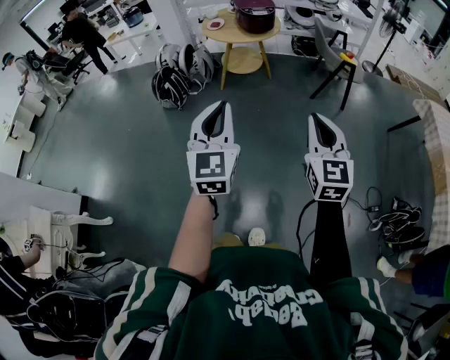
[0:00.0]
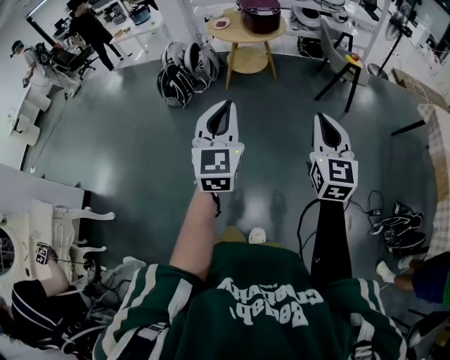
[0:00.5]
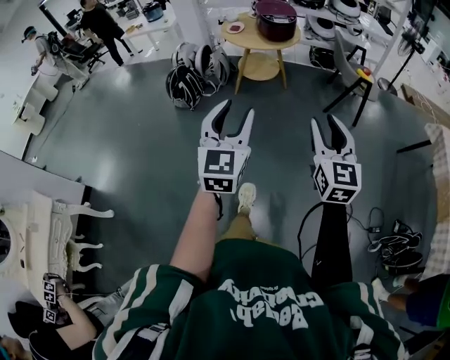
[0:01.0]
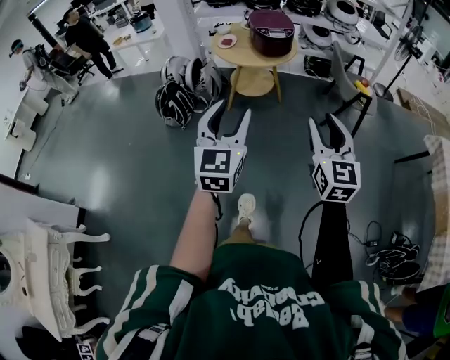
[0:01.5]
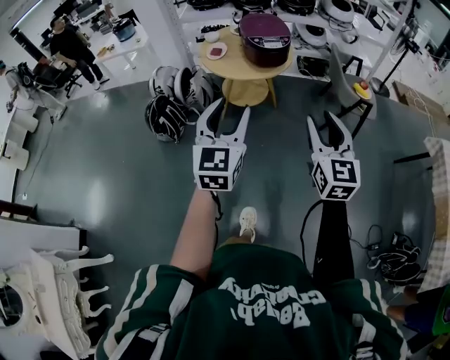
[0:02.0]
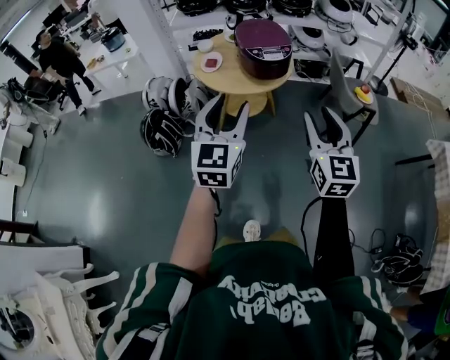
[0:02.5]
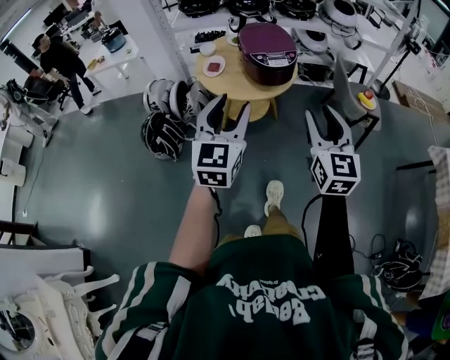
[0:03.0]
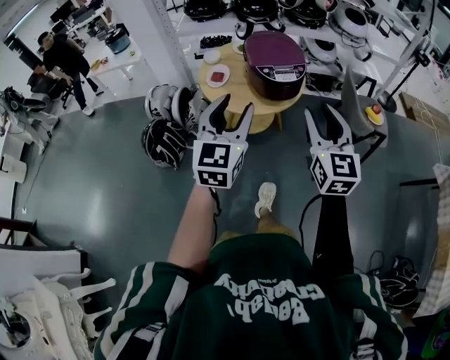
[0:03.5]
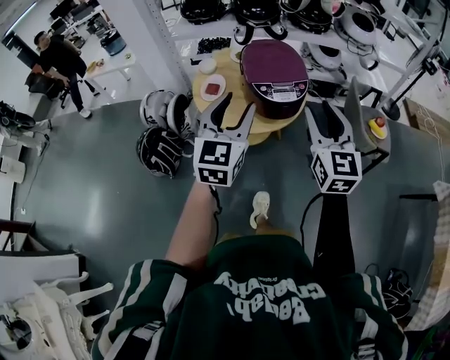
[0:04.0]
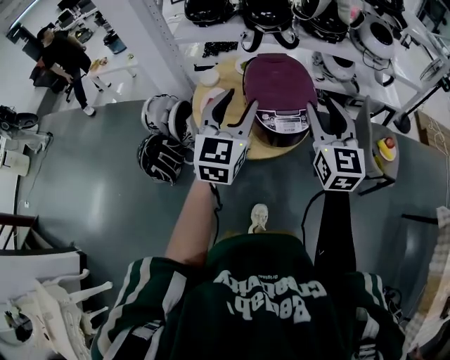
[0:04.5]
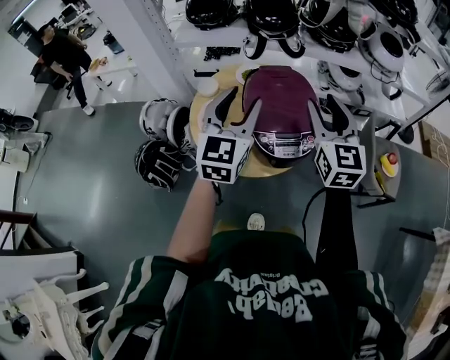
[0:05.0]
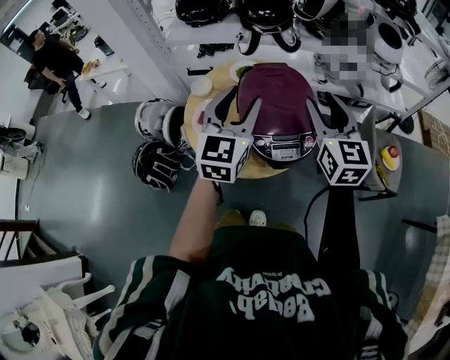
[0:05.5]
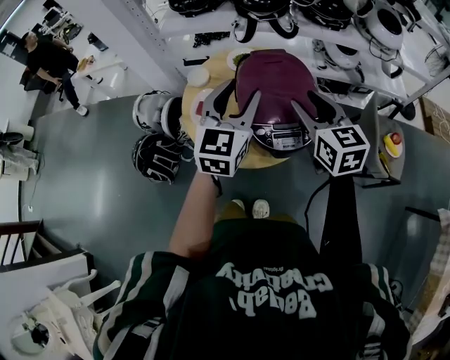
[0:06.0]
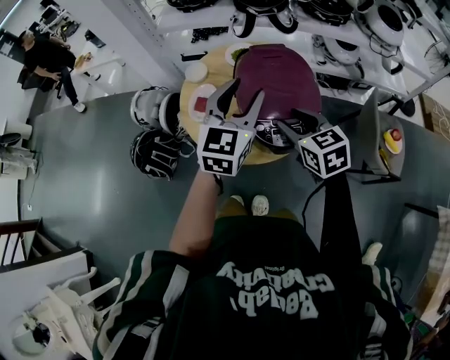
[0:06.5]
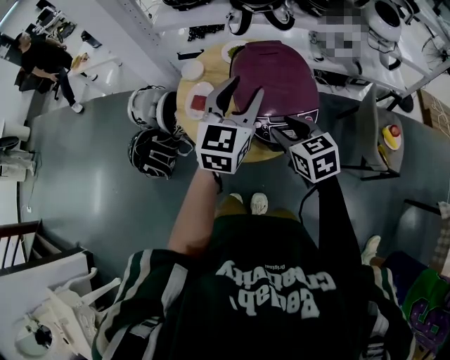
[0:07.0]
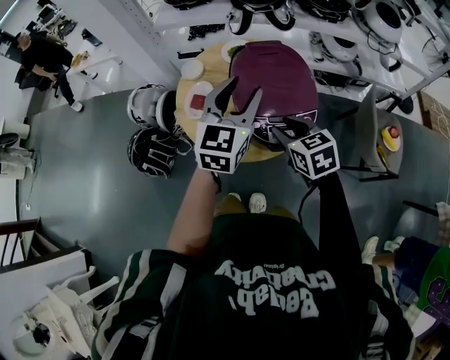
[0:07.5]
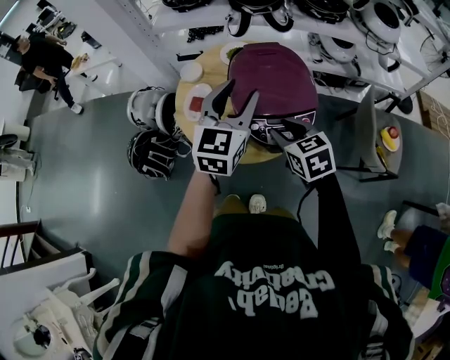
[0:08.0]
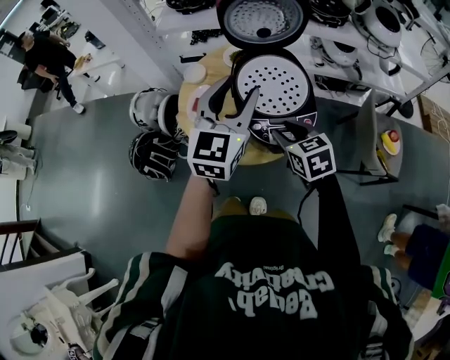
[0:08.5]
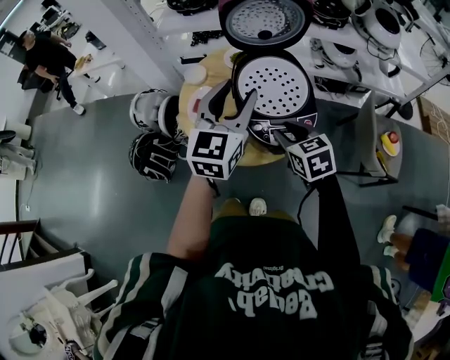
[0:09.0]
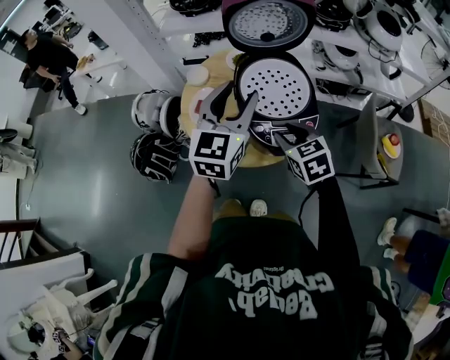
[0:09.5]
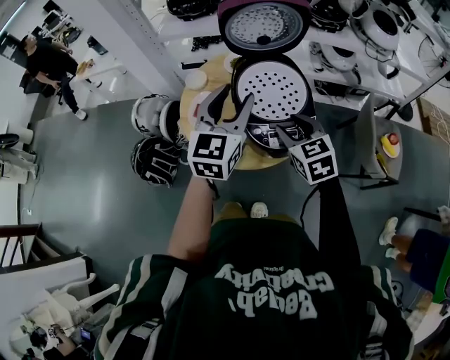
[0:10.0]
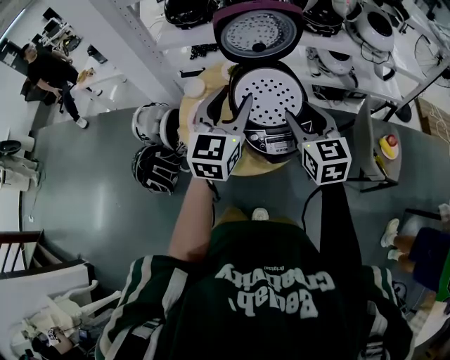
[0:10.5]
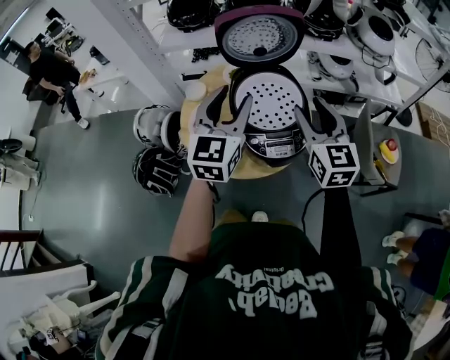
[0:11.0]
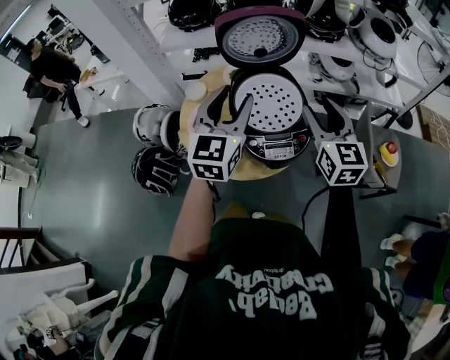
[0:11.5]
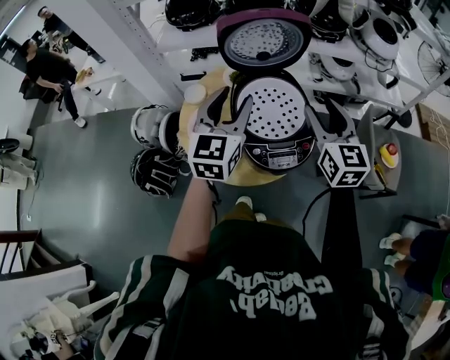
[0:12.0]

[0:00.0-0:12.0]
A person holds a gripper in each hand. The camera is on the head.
0:00.0 to 0:02.0: The two grippers go about 35 cm forward. The left gripper opens. Meanwhile the right gripper opens.
0:02.0 to 0:04.0: The grippers both shift forward by about 35 cm.
0:04.0 to 0:06.0: Both grippers travel together forward, roughly 25 cm. The right gripper swivels about 30 degrees.
0:06.0 to 0:08.0: The right gripper moves downward, approximately 10 cm, and rotates roughly 20 degrees.
0:08.0 to 0:10.0: There are only small adjustments of the grippers.
0:10.0 to 0:12.0: The right gripper heads upward, to the right and forward, covering roughly 15 cm, and swivels roughly 30 degrees. The left gripper ends up about 5 cm from where it was.

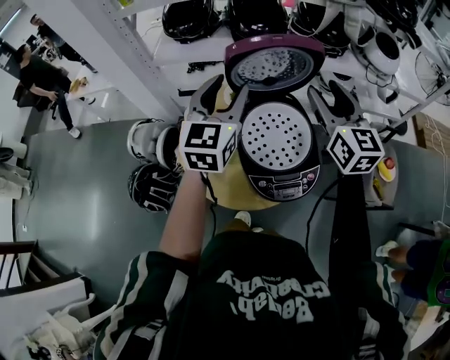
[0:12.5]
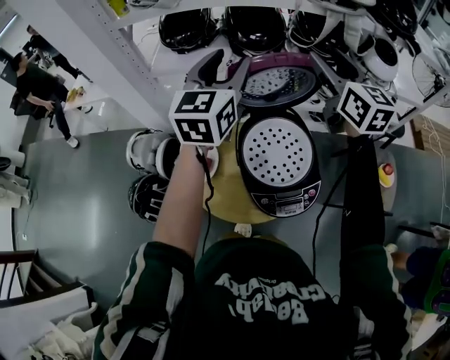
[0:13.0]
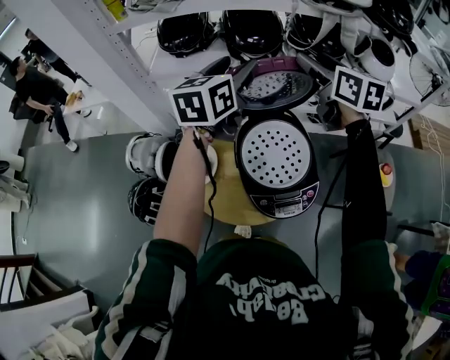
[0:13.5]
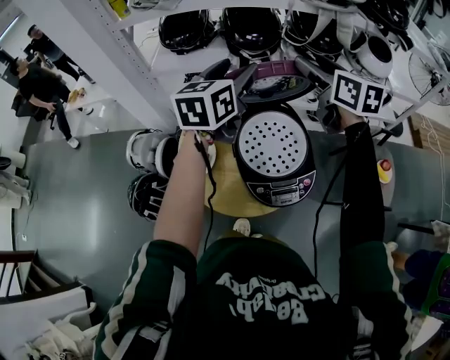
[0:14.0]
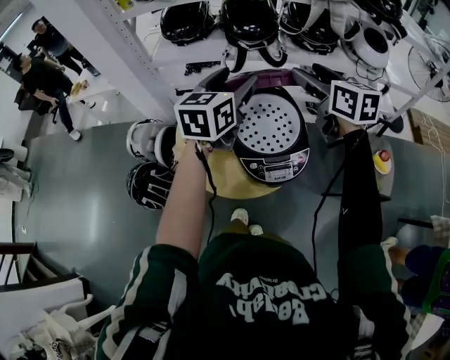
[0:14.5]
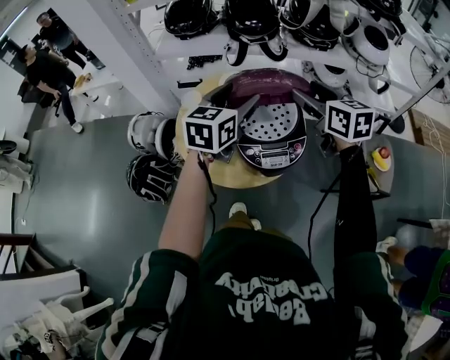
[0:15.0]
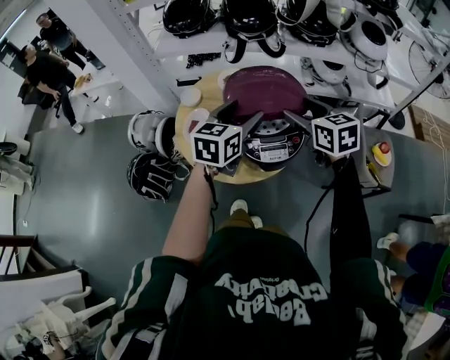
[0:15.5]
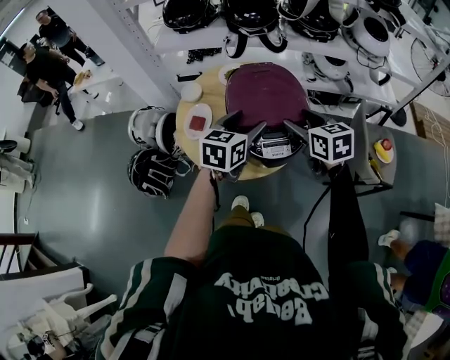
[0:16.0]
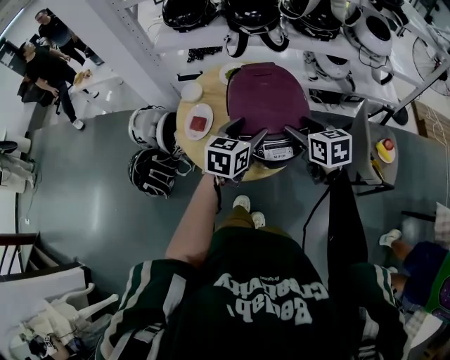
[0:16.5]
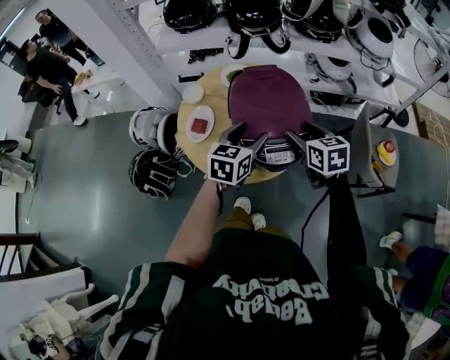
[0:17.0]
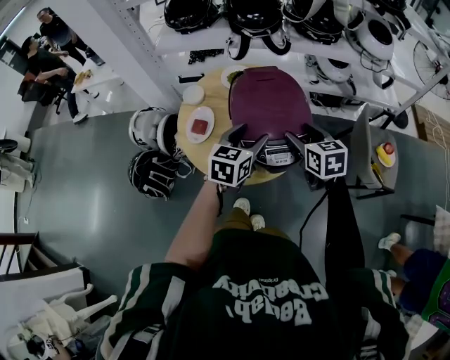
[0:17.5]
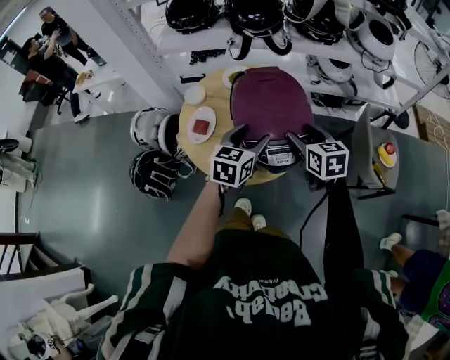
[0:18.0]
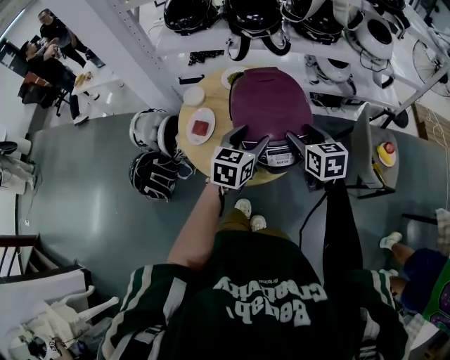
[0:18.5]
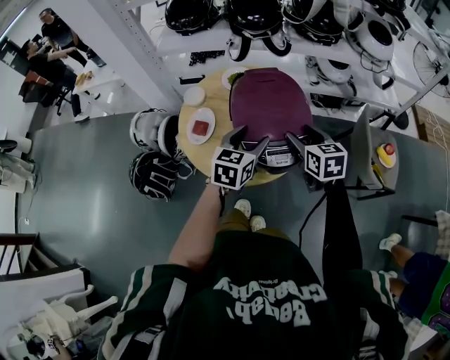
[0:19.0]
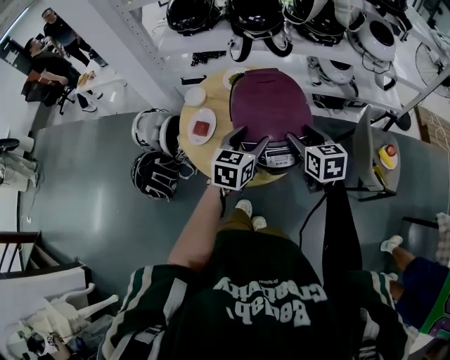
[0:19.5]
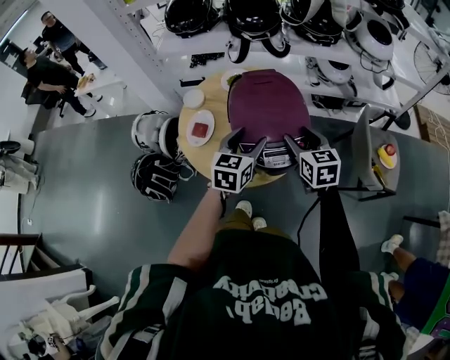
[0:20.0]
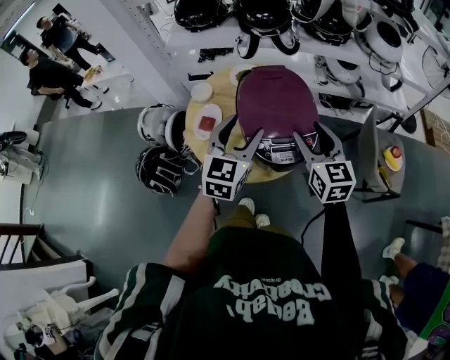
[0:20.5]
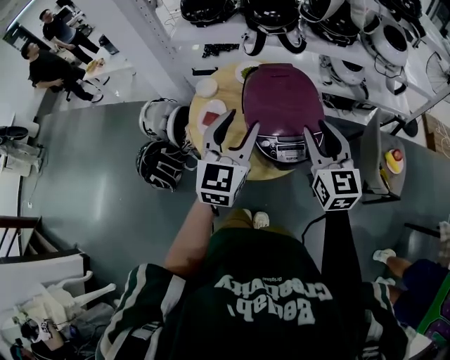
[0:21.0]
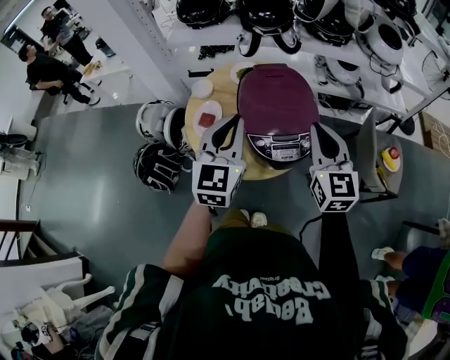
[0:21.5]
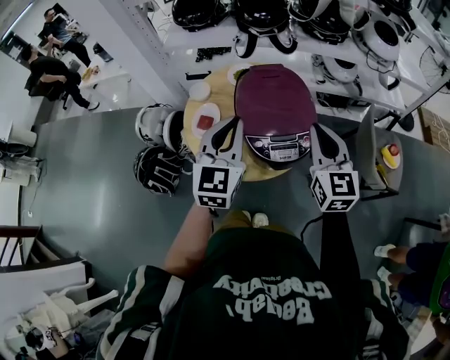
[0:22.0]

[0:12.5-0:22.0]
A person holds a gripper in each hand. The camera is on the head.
0:12.5 to 0:14.5: The right gripper moves approximately 15 cm forward and comes back, and turns by approximately 20 degrees. Meanwhile the left gripper reaches some 10 cm forward, then returns.
0:14.5 to 0:16.5: Both grippers travel together downward and backward, some 25 cm.
0:16.5 to 0:20.0: The grippers move only a little.
0:20.0 to 0:22.0: The right gripper is displaced upward by about 10 cm, rotates some 20 degrees, and closes up, while the left gripper moves upward and to the left, roughly 15 cm, swivels about 30 degrees, and closes up.

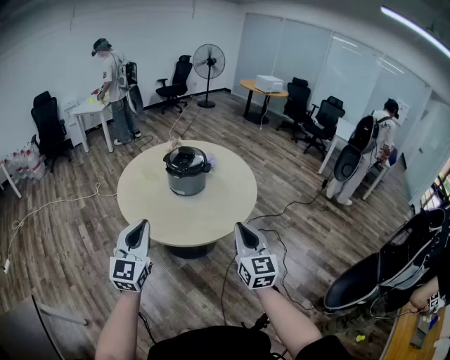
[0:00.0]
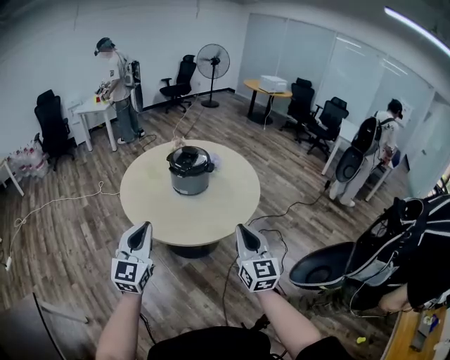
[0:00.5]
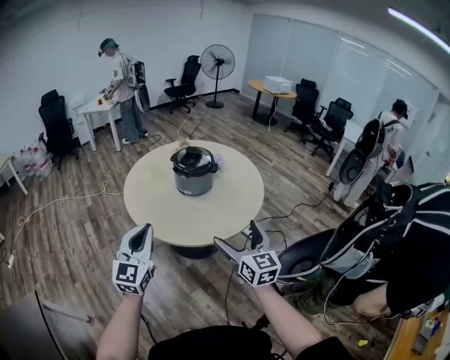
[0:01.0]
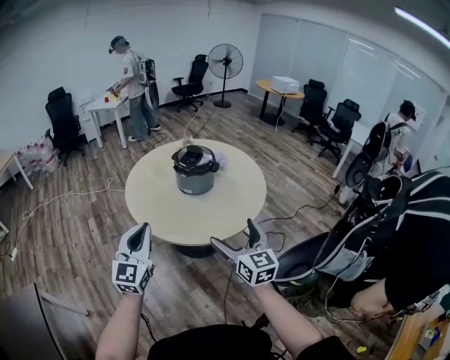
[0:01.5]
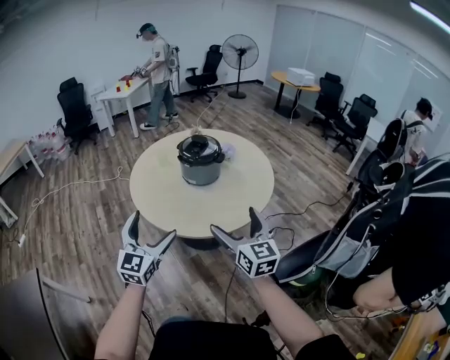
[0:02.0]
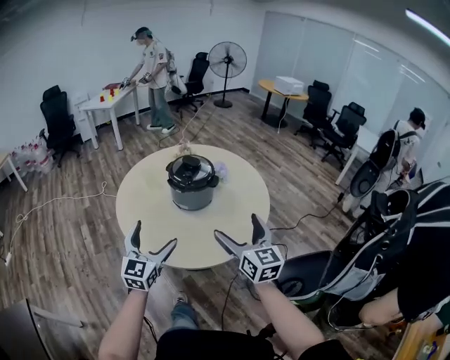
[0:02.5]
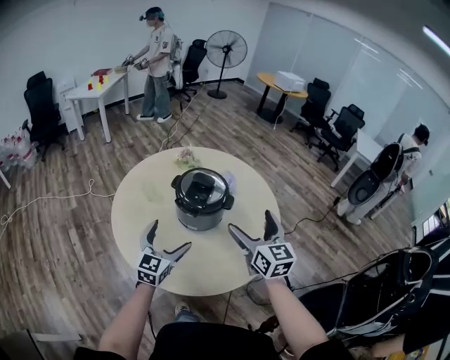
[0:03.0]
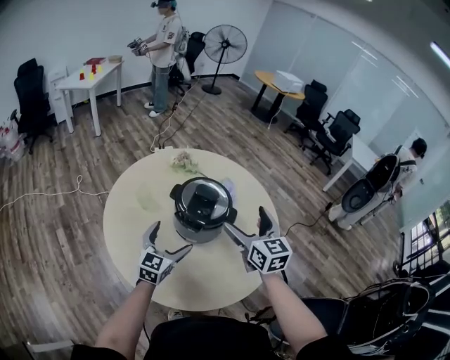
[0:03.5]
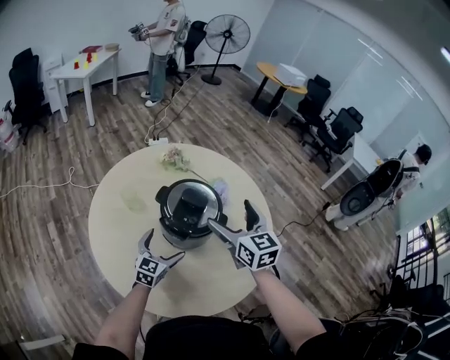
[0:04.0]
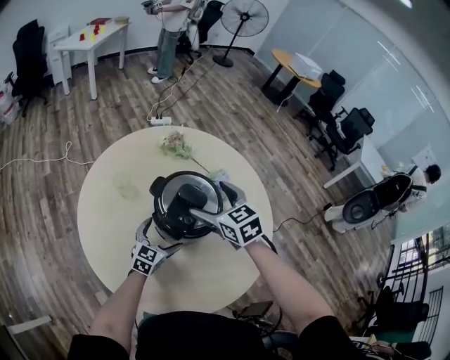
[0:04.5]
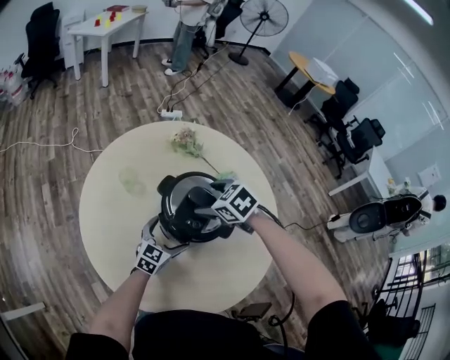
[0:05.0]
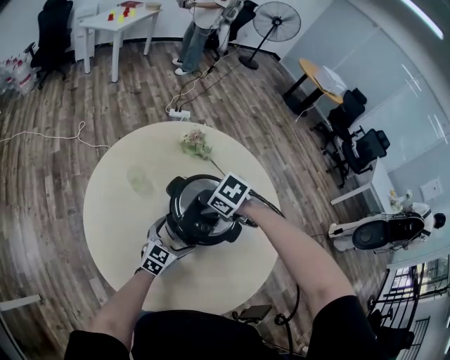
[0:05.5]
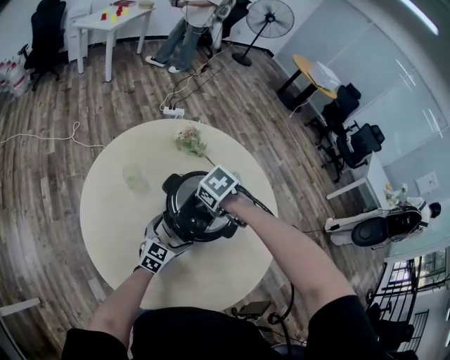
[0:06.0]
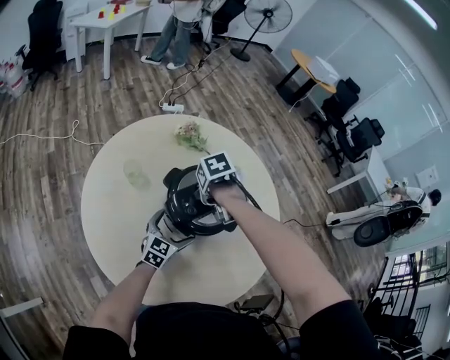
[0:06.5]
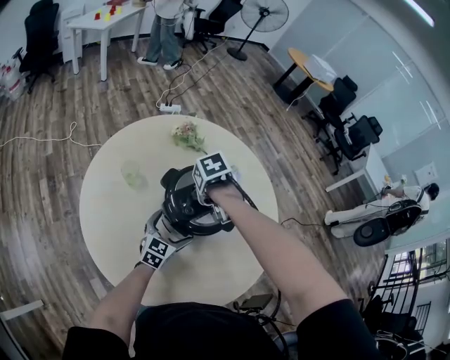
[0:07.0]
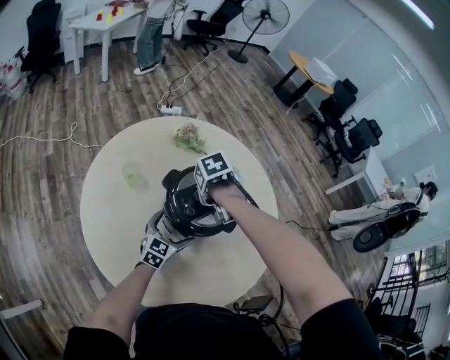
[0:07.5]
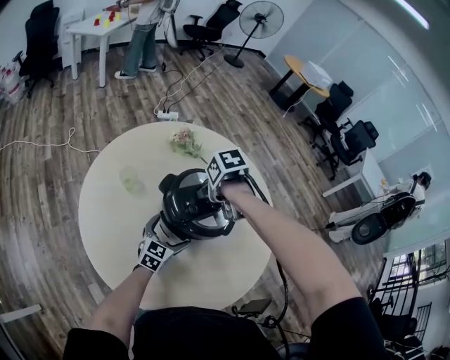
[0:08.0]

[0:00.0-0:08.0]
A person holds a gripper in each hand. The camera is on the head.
0:00.0 to 0:02.0: The left gripper heads to the right and downward, covering approximately 10 cm, and opens. Meanwhile the right gripper ends up approximately 5 cm from where it was, and opens its fingers.
0:02.0 to 0:04.0: Both grippers are carried forward, some 50 cm. The left gripper moves downward, some 25 cm, and changes its angle by approximately 30 degrees.
0:04.0 to 0:06.0: The right gripper heads downward, covering roughly 20 cm, angles its fingers downward, by about 70 degrees, and closes its fingers. The left gripper moves some 10 cm.
0:06.0 to 0:08.0: The right gripper turns by about 30 degrees.
